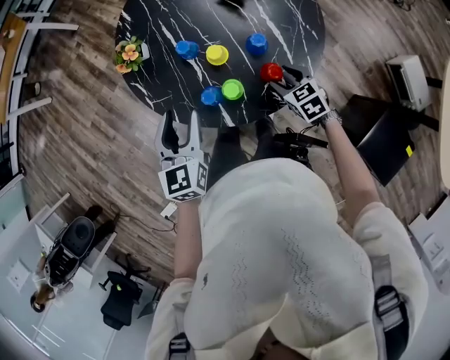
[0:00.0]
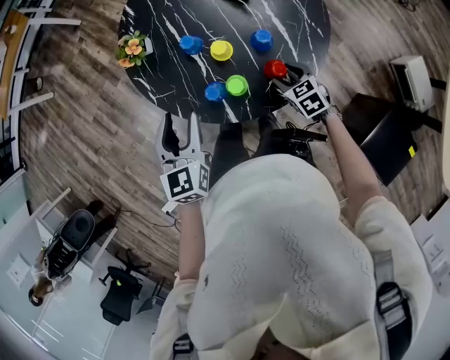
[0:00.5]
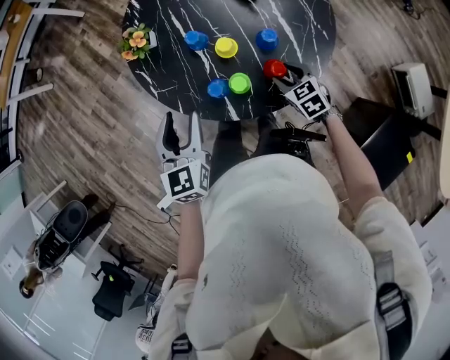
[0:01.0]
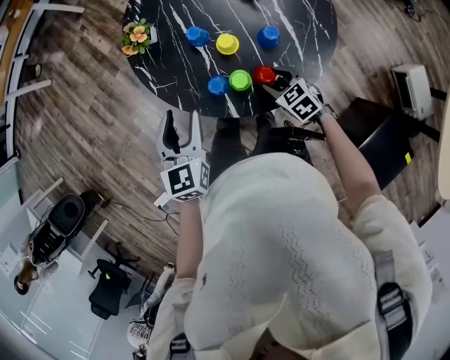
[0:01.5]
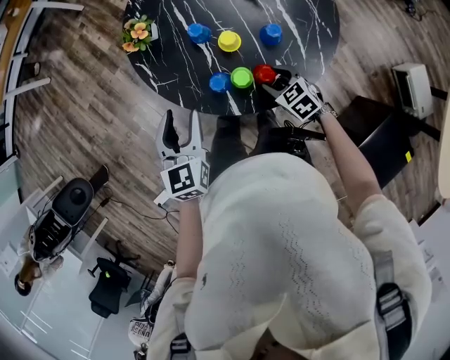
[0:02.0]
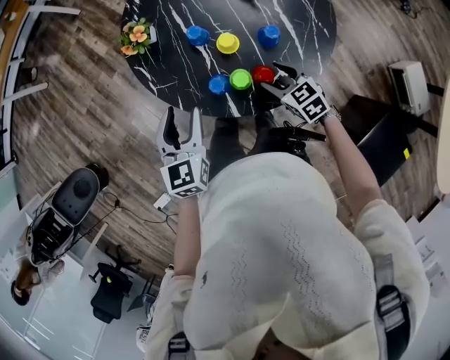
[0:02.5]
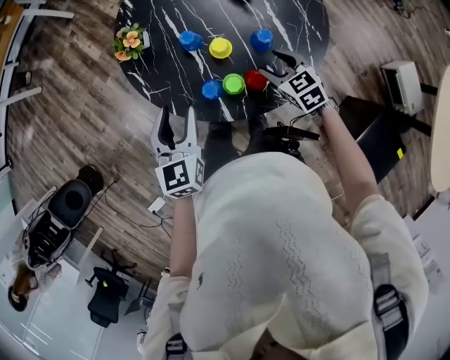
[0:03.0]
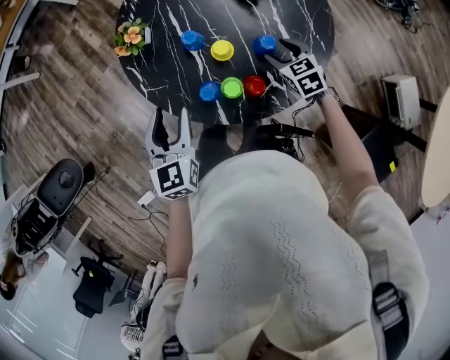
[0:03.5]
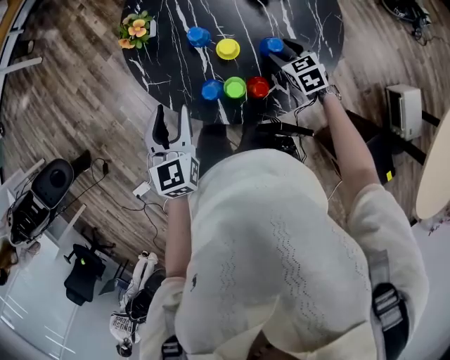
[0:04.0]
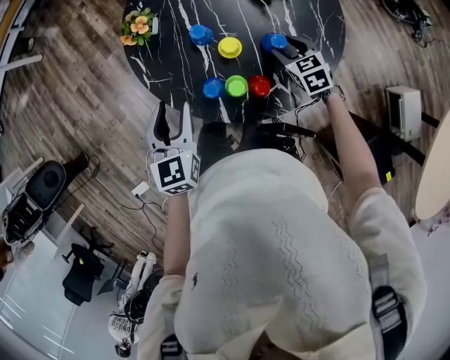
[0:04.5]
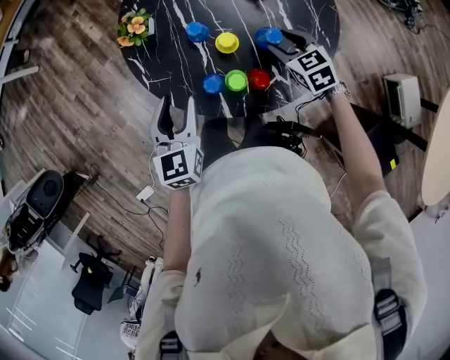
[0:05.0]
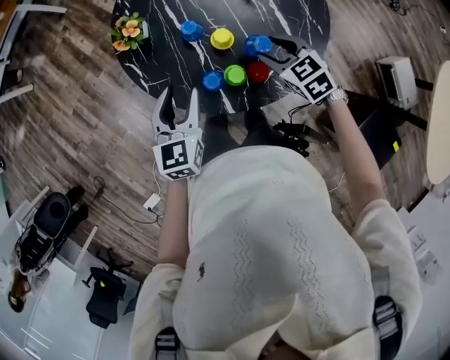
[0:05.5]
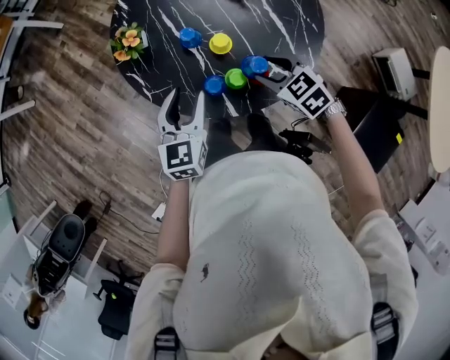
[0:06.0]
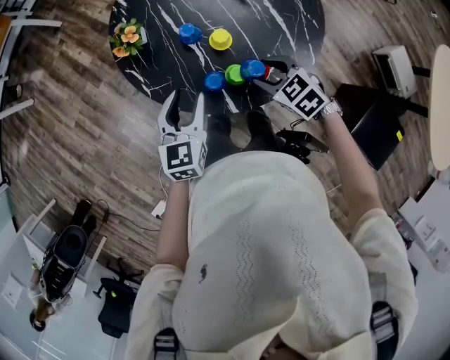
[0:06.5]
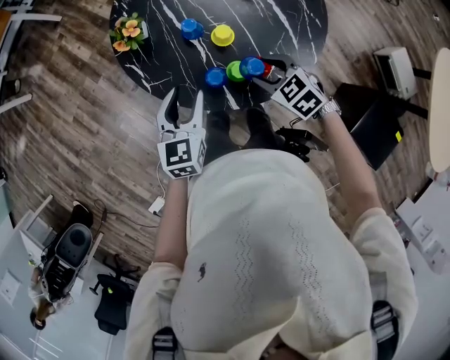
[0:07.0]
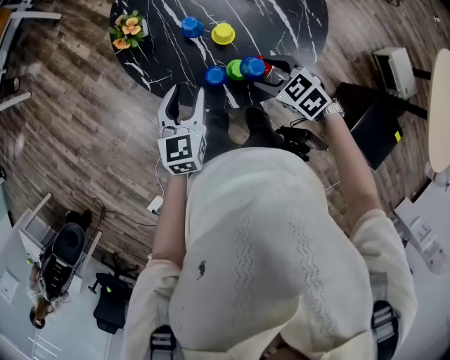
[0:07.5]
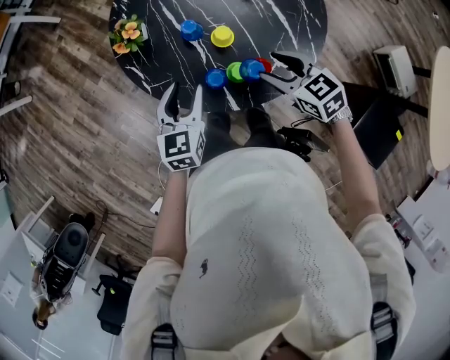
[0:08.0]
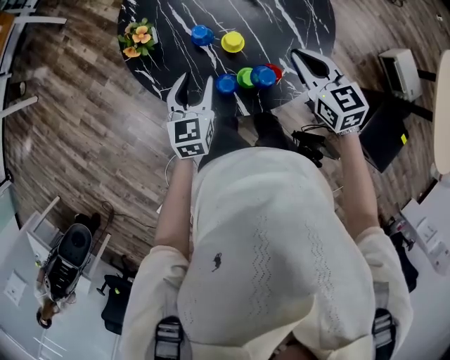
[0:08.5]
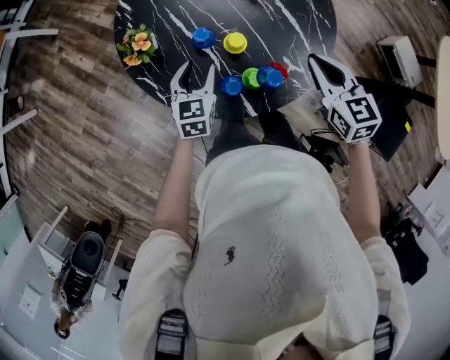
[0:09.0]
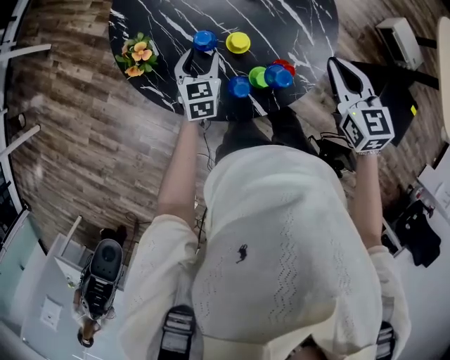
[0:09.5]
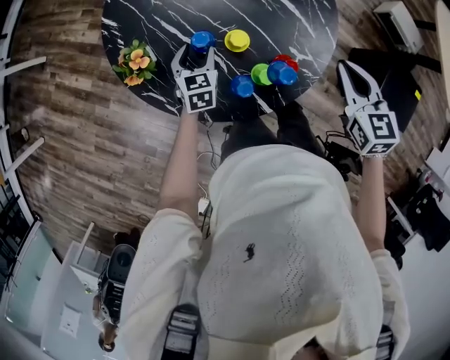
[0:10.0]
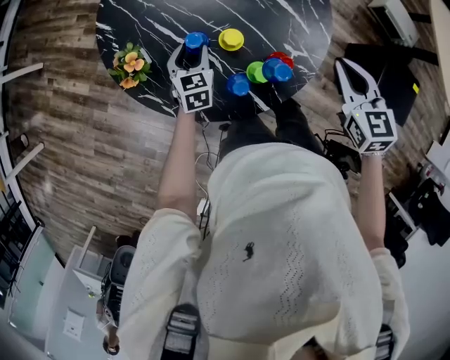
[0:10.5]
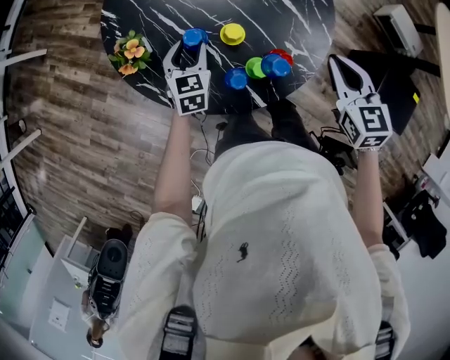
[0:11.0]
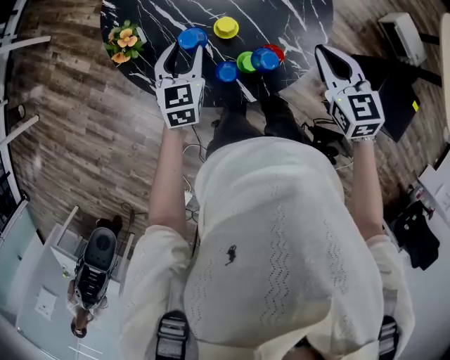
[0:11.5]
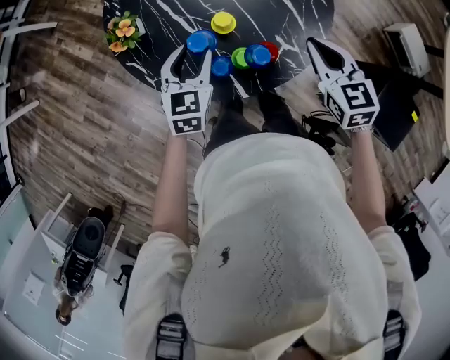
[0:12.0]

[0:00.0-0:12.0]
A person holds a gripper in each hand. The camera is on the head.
0:00.0 to 0:02.0: The right gripper goes approximately 10 cm to the left, while the left gripper goes some 5 cm to the left.
0:02.0 to 0:04.0: The right gripper shifts some 15 cm forward and to the right.
0:04.0 to 0:06.0: The right gripper moves to the left, upward and backward, some 20 cm; the left gripper rotates approximately 20 degrees.
0:06.0 to 0:08.0: The grippers make only small movements.
0:08.0 to 0:10.0: The right gripper moves some 10 cm, changes its angle by about 50 degrees, and closes its fingers. Meanwhile the left gripper moves approximately 25 cm, and rotates roughly 20 degrees.
0:10.0 to 0:12.0: The left gripper moves upward, backward and to the right, some 15 cm.

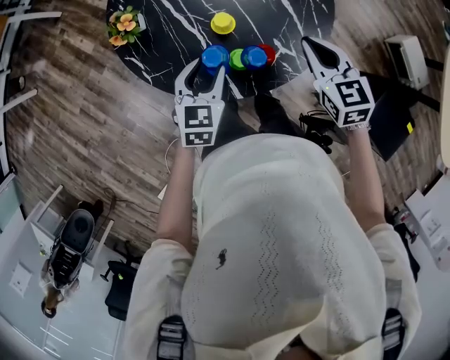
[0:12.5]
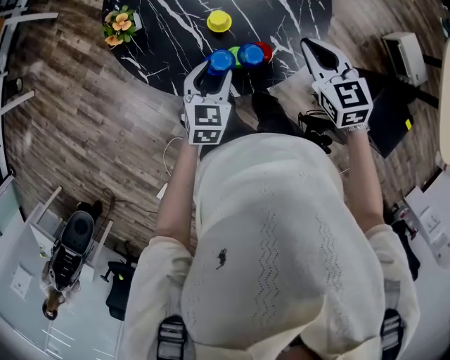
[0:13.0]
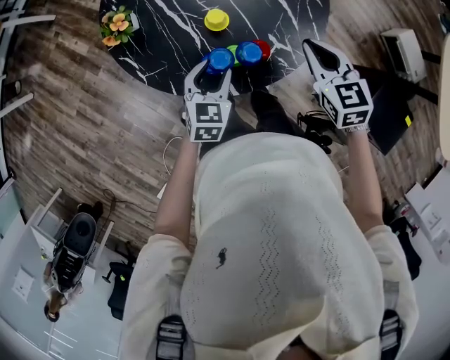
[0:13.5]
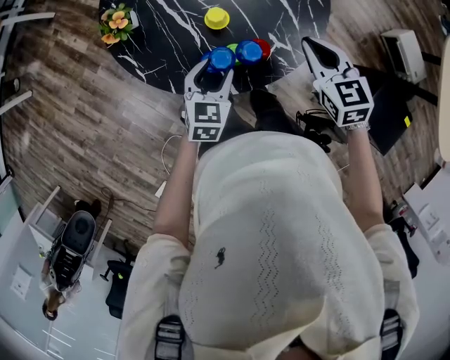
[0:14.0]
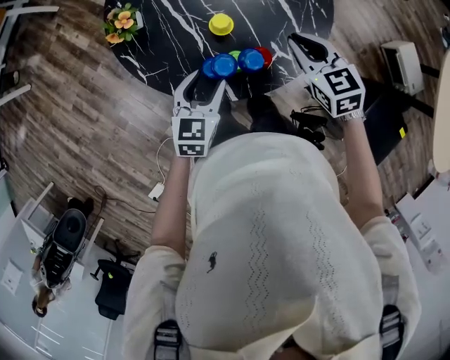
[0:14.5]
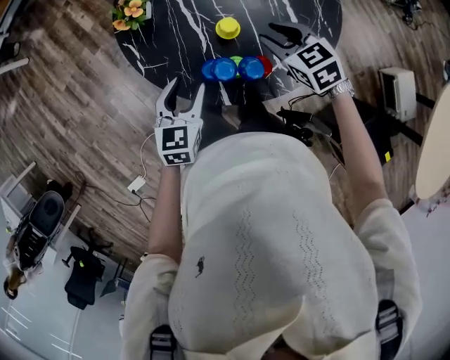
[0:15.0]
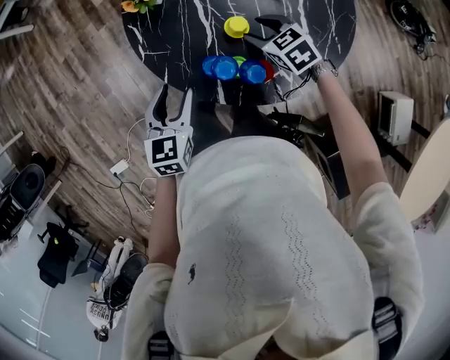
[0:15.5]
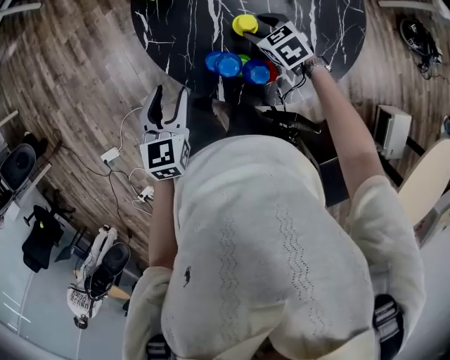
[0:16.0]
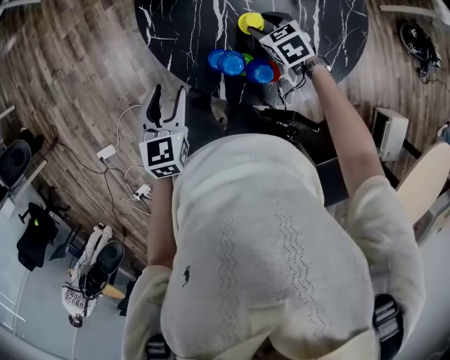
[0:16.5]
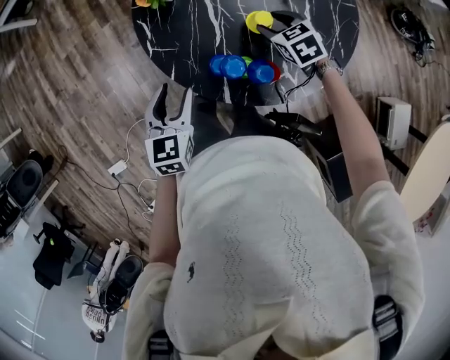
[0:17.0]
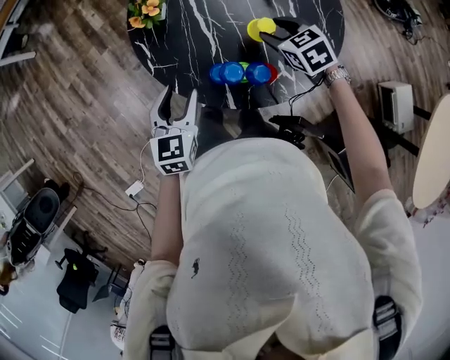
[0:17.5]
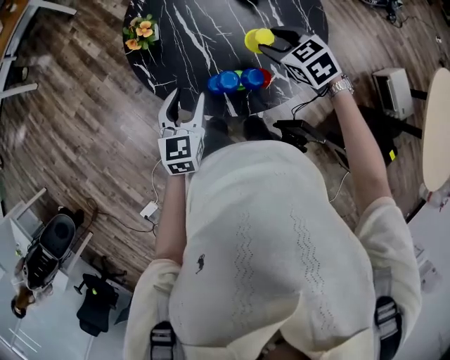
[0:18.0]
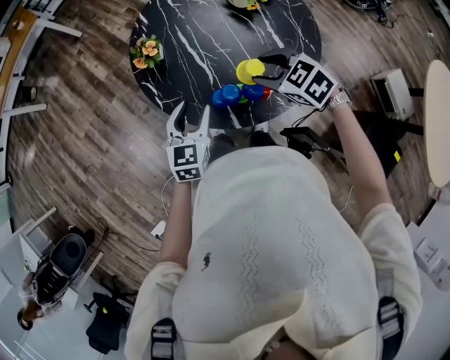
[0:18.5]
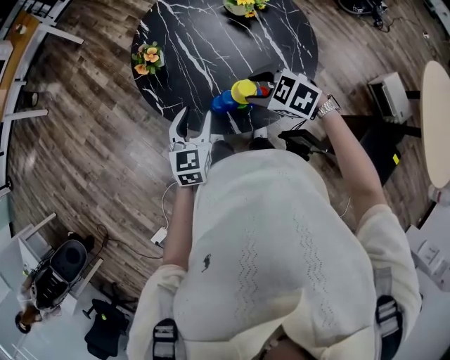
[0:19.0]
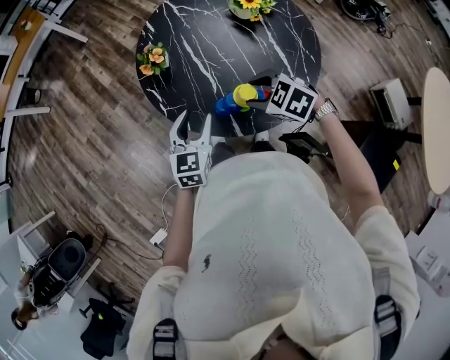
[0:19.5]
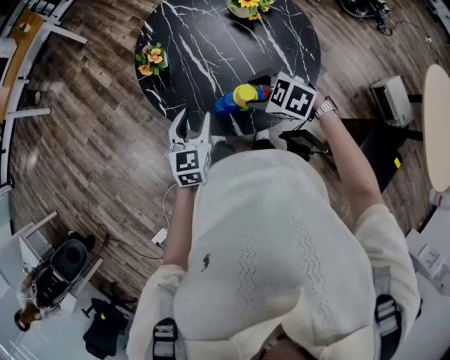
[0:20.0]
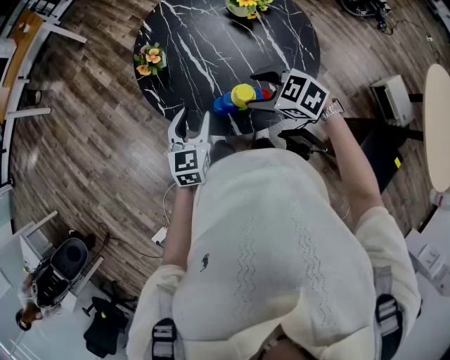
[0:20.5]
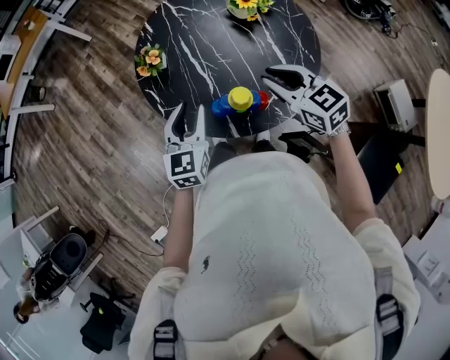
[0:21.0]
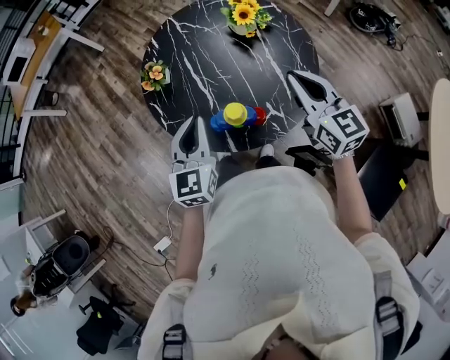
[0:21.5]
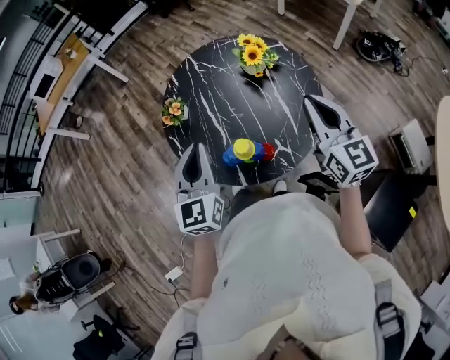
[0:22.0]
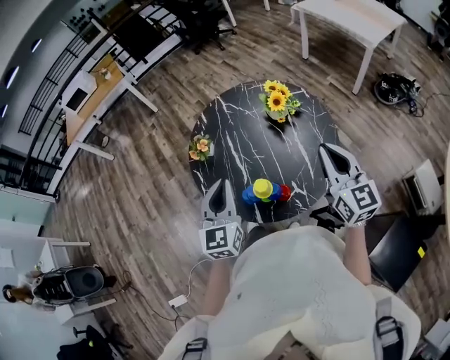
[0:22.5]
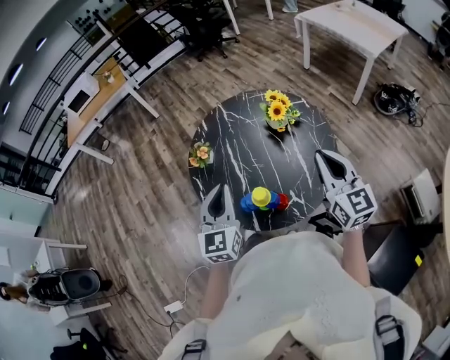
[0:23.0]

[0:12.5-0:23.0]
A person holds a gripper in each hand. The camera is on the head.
0:12.5 to 0:14.5: The grippers make only small movements.
0:14.5 to 0:16.5: The left gripper shifts by about 10 cm, and swivels some 40 degrees. Meanwhile the right gripper shifts by approximately 20 cm, changes its angle by approximately 40 degrees, and opens its fingers.
0:16.5 to 0:19.0: The right gripper moves upward and backward, about 25 cm; the left gripper travels upward and to the right by approximately 10 cm, and rotates approximately 30 degrees.
0:19.0 to 0:21.0: The right gripper travels to the right and upward by approximately 10 cm, changes its angle by some 30 degrees, and closes its fingers, while the left gripper moves roughly 5 cm.
0:21.0 to 0:23.0: The left gripper goes about 15 cm upward, and closes its fingers. The right gripper goes about 20 cm upward and to the right, and changes its angle by about 30 degrees.

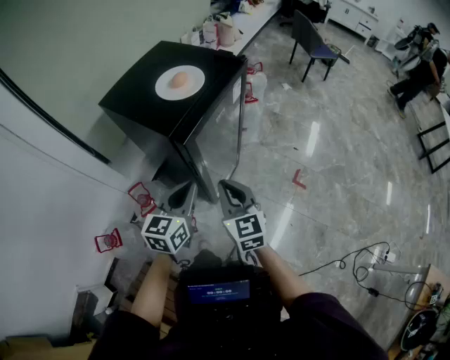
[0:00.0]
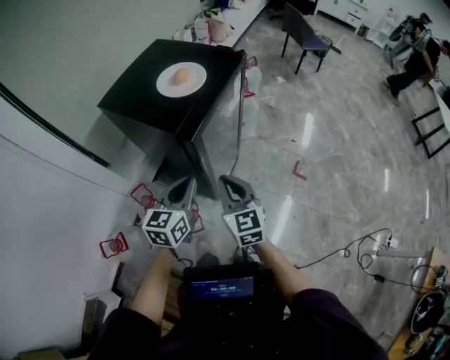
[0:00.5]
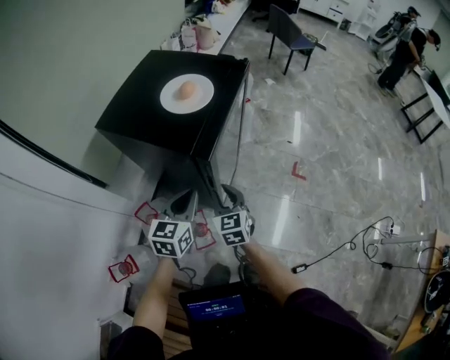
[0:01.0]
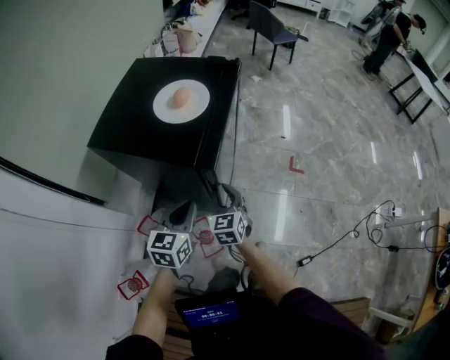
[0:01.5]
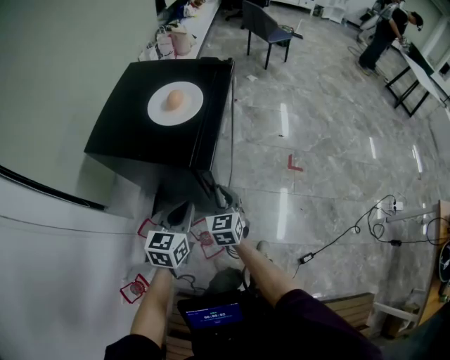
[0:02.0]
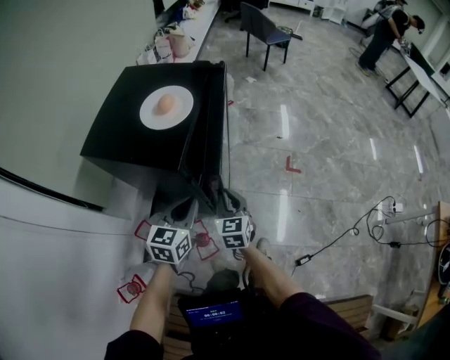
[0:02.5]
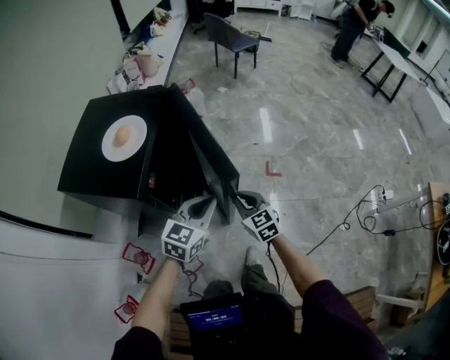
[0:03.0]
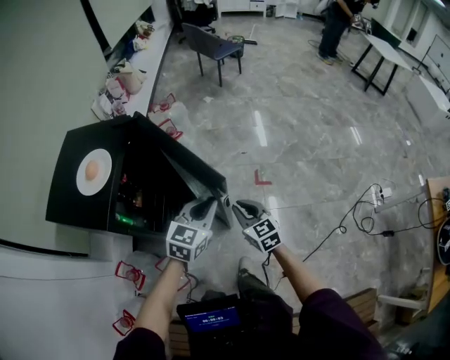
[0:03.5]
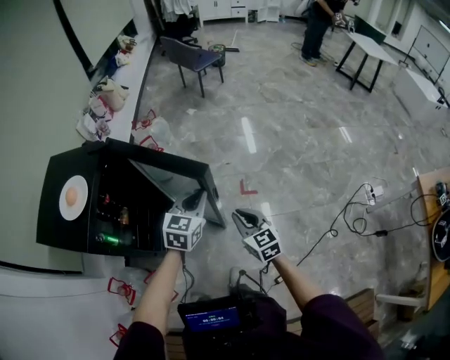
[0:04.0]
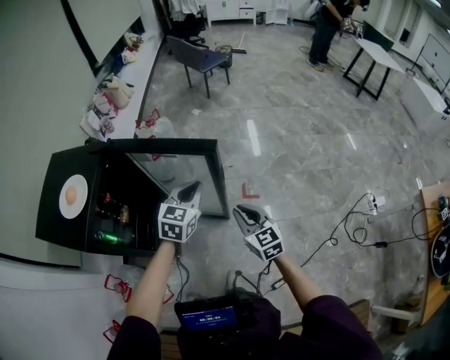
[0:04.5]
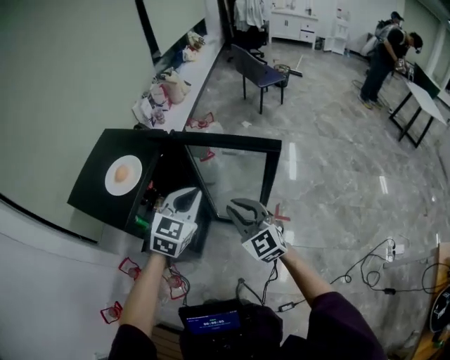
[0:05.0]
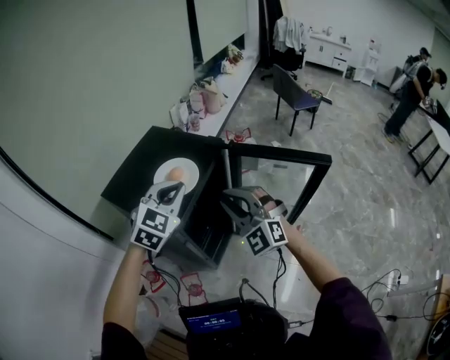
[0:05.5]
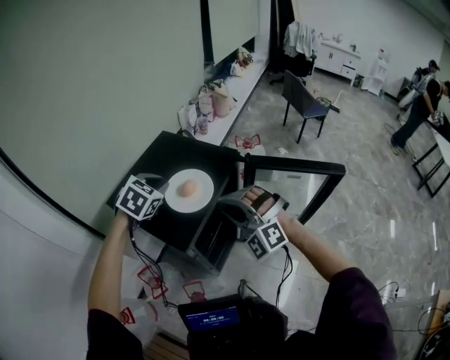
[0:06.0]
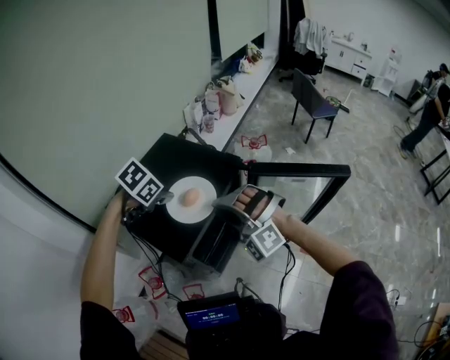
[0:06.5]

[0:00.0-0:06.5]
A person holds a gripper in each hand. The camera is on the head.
0:00.0 to 0:02.0: The left gripper travels to the left and downward by roughly 10 cm. Meanwhile the right gripper goes about 20 cm downward, to the left and forward, and changes its angle by about 30 degrees.
0:02.0 to 0:04.5: The pair of grippers is taken to the right and forward, some 40 cm. The left gripper changes its angle by about 20 degrees.
0:04.5 to 0:06.5: Both grippers are carried some 50 cm. The left gripper angles its fingers downward, by about 40 degrees; the right gripper rotates around the line of its fingers by some 90 degrees, counterclockwise from behind.
